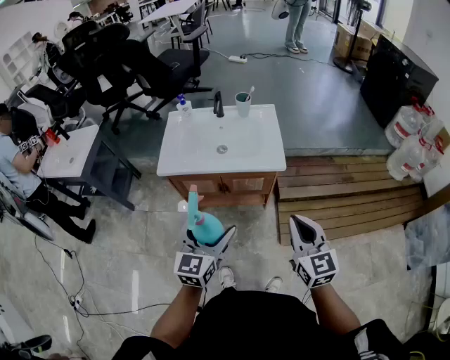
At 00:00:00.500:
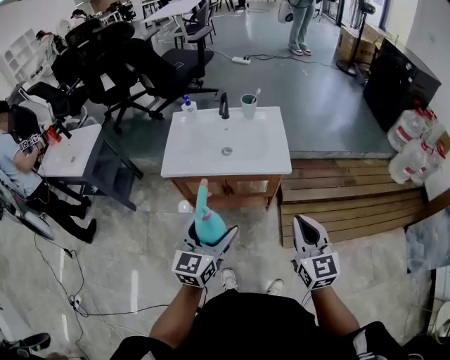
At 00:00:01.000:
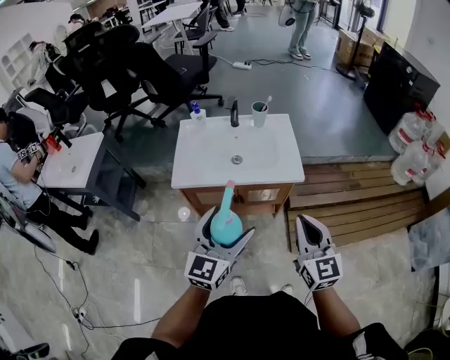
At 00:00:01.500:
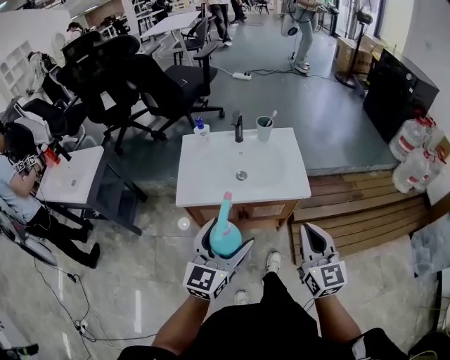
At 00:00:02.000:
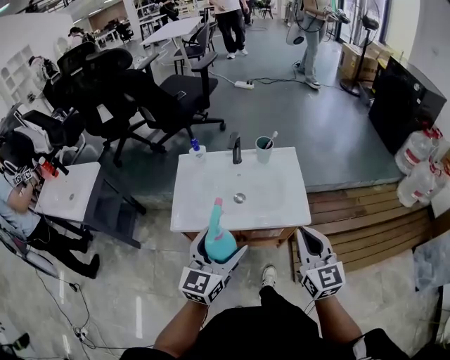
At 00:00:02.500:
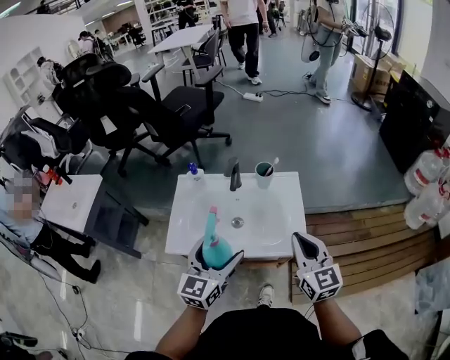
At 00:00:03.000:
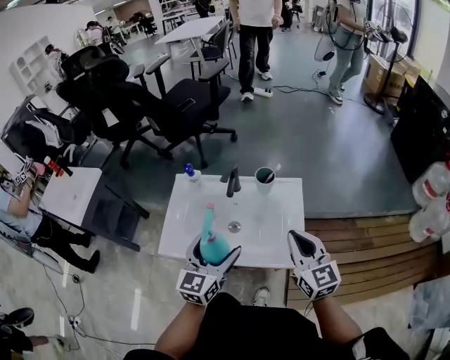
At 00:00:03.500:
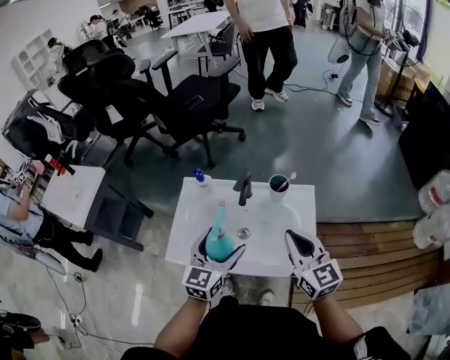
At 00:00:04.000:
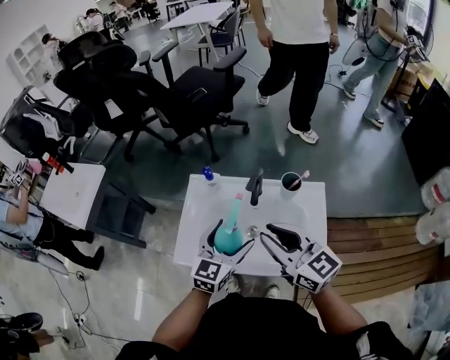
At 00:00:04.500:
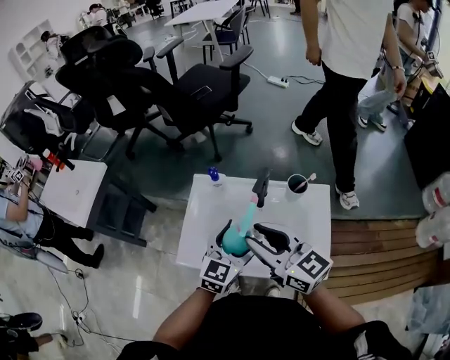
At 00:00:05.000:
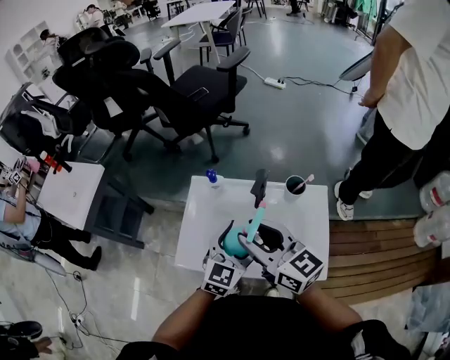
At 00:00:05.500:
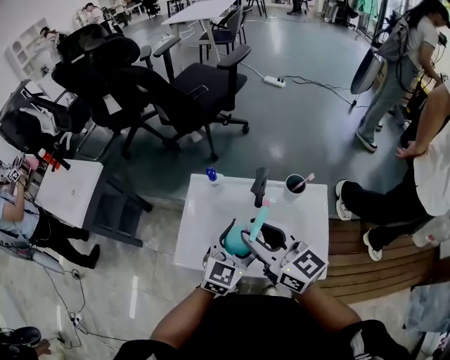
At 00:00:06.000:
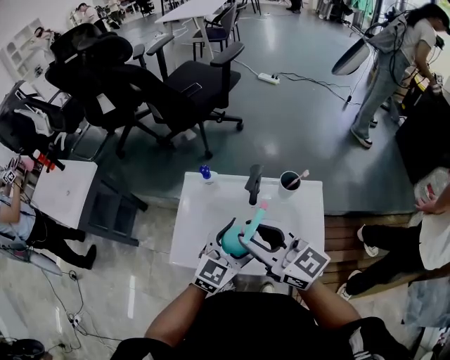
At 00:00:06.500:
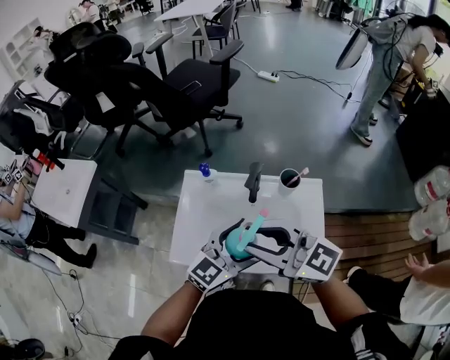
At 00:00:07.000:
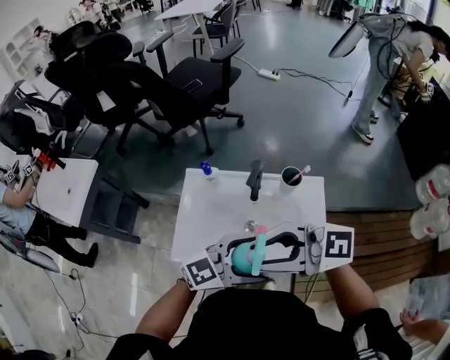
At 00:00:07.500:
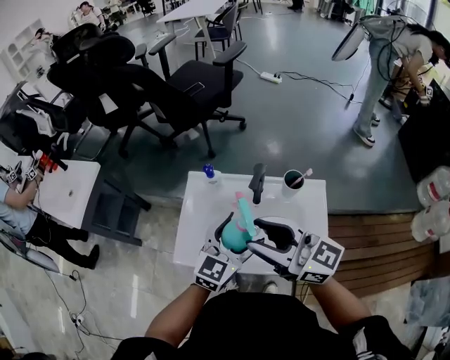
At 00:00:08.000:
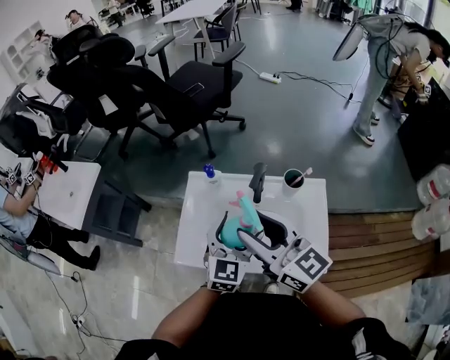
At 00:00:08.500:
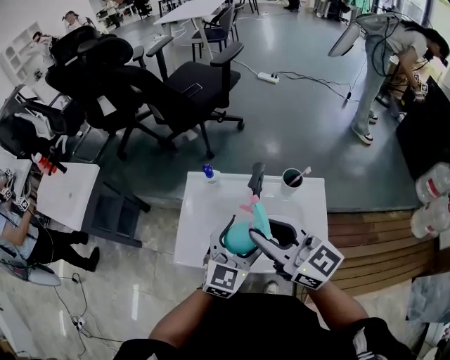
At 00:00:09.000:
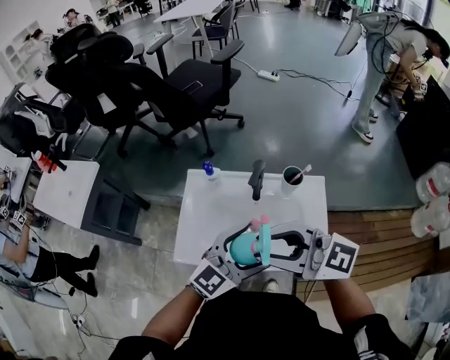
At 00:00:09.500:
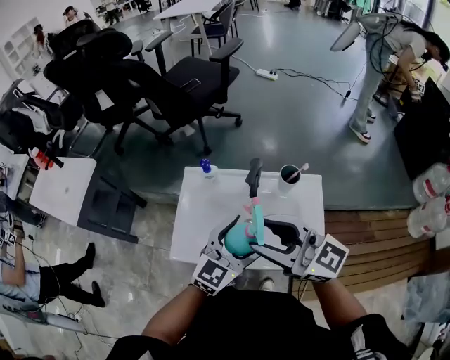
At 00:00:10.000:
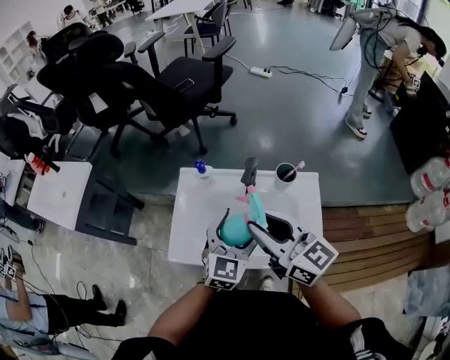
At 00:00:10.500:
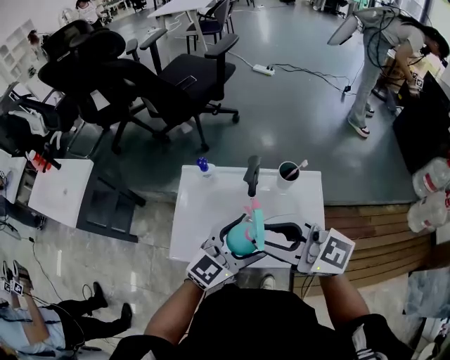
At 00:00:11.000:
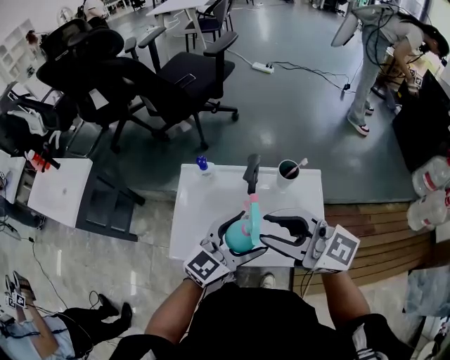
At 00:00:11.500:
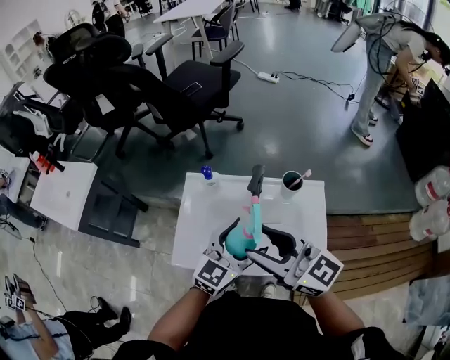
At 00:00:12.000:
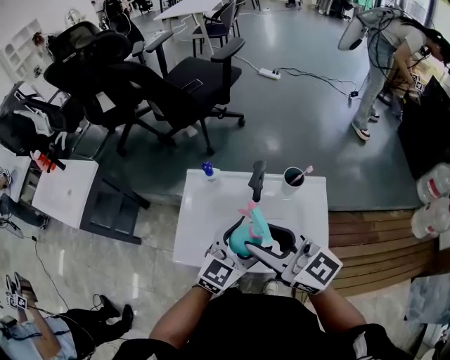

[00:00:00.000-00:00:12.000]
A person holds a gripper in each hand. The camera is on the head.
00:00:00.000 to 00:00:02.000: Both grippers travel together forward and to the left, roughly 20 cm.
00:00:02.000 to 00:00:04.000: The left gripper travels forward by some 25 cm; the right gripper heads forward and to the left, covering about 25 cm, changes its angle by roughly 40 degrees, and opens up.
00:00:04.000 to 00:00:06.000: The right gripper heads to the left, covering roughly 5 cm.

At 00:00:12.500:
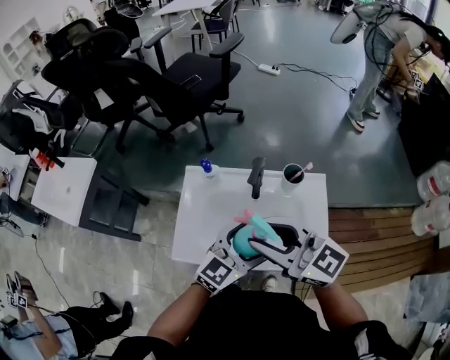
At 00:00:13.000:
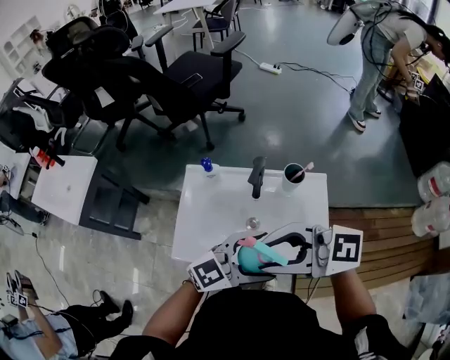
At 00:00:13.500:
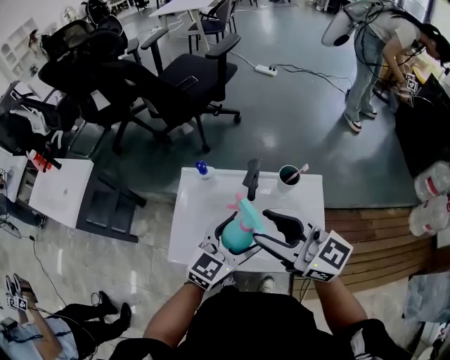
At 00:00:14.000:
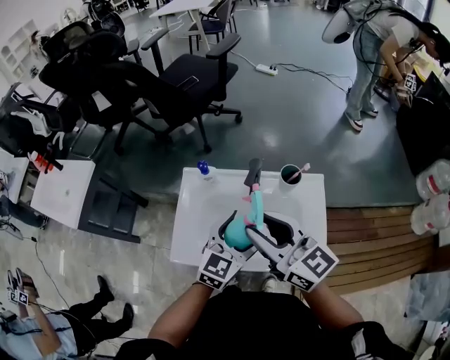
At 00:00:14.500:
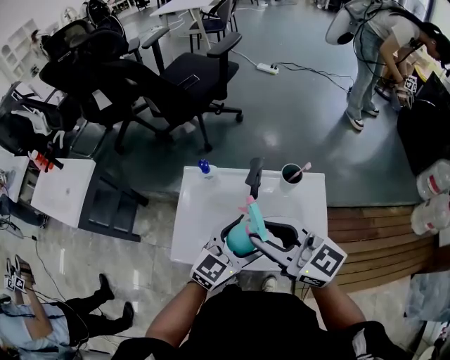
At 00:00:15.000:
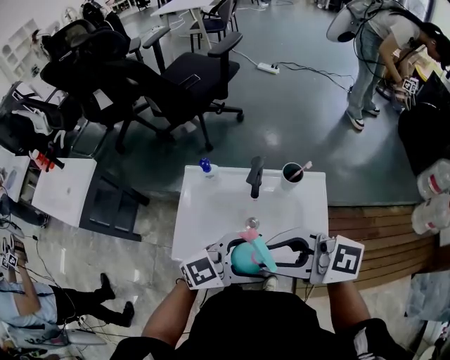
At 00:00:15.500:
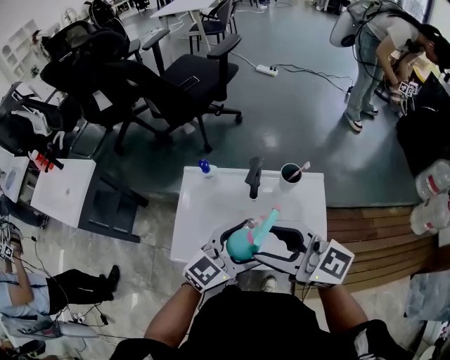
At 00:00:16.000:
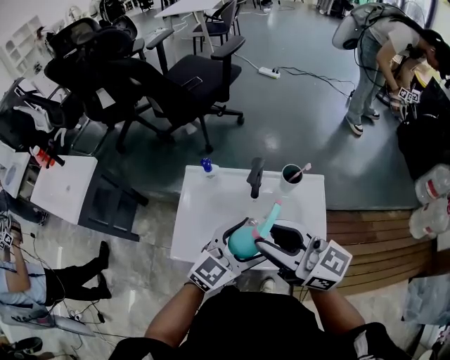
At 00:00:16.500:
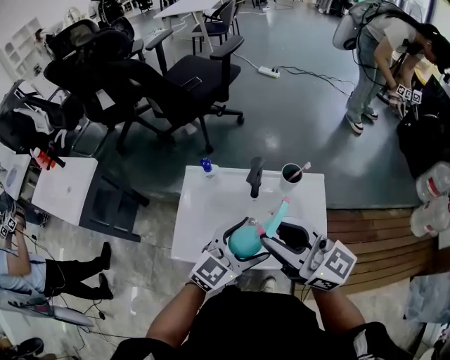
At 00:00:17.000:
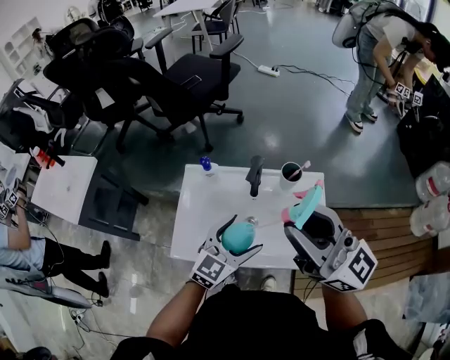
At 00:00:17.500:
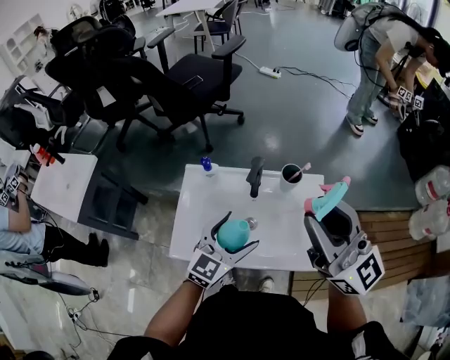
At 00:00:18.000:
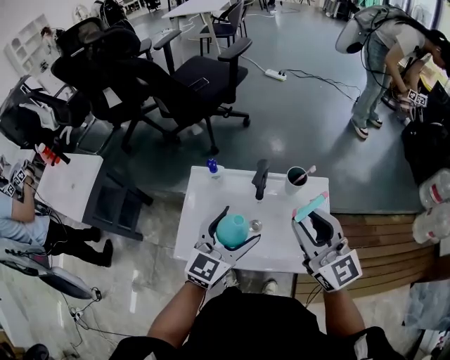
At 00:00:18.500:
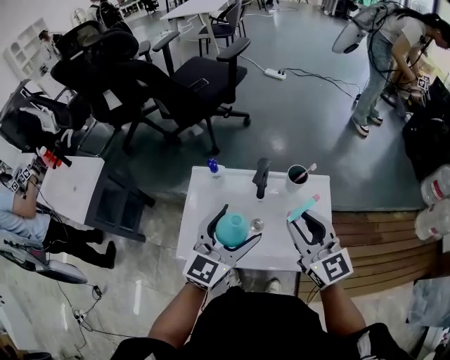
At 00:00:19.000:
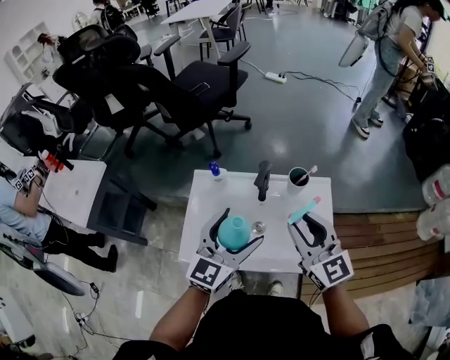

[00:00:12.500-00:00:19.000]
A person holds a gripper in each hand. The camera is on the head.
00:00:14.500 to 00:00:17.000: The right gripper moves upward, roughly 10 cm.
00:00:17.000 to 00:00:19.000: The right gripper shifts roughly 15 cm downward, and turns by about 30 degrees. Meanwhile the left gripper goes about 10 cm upward.

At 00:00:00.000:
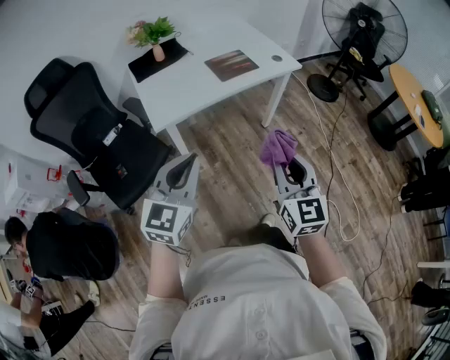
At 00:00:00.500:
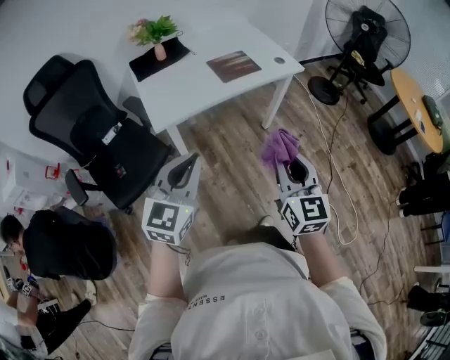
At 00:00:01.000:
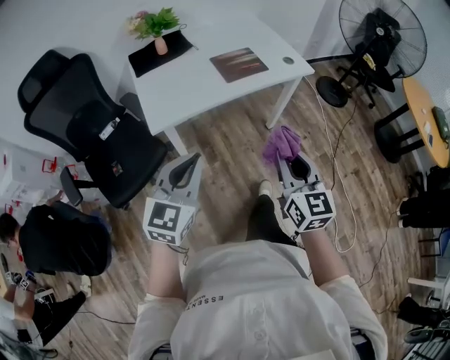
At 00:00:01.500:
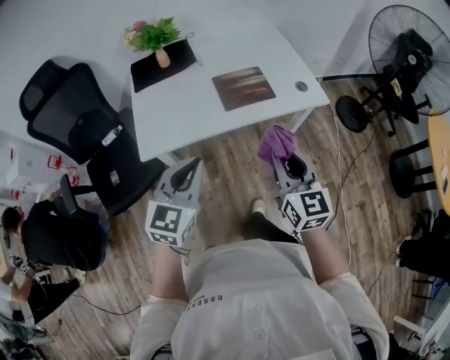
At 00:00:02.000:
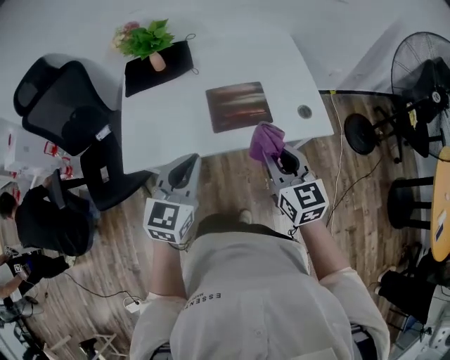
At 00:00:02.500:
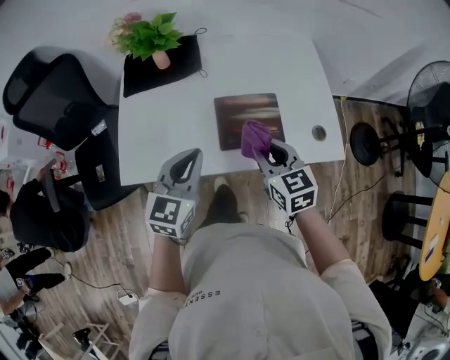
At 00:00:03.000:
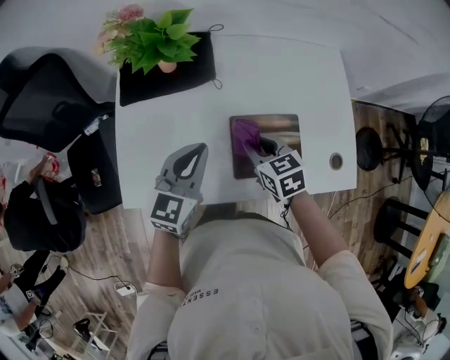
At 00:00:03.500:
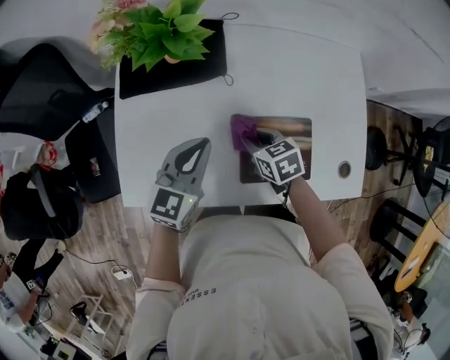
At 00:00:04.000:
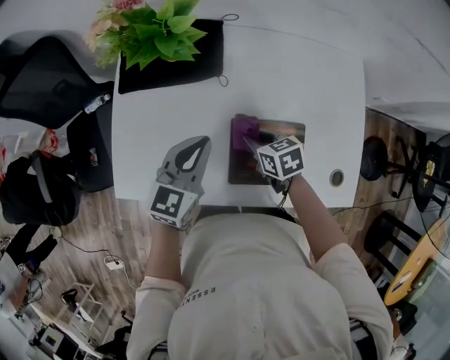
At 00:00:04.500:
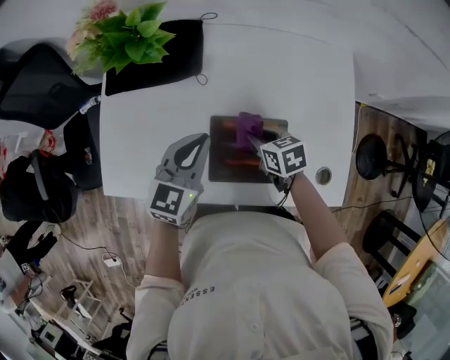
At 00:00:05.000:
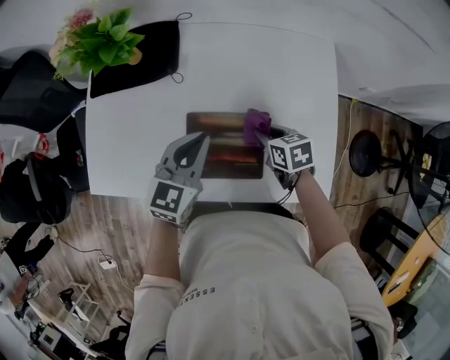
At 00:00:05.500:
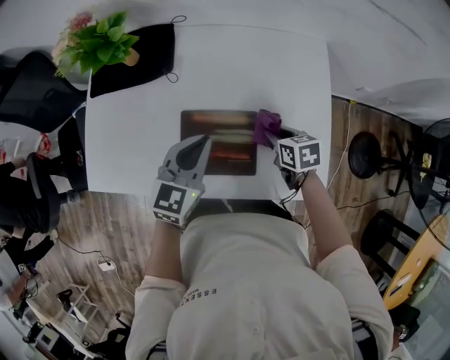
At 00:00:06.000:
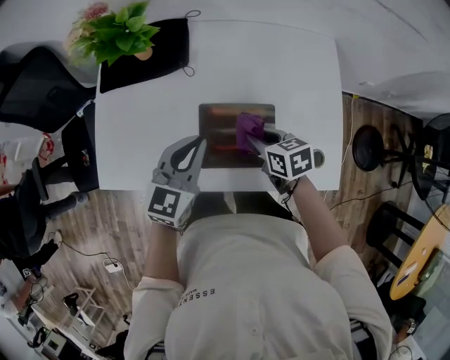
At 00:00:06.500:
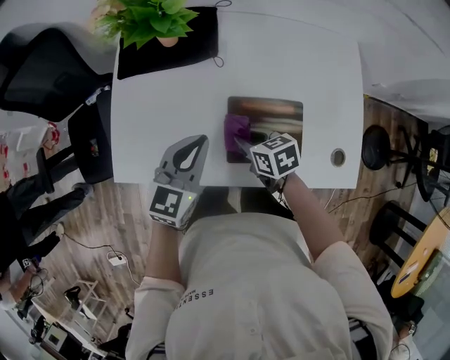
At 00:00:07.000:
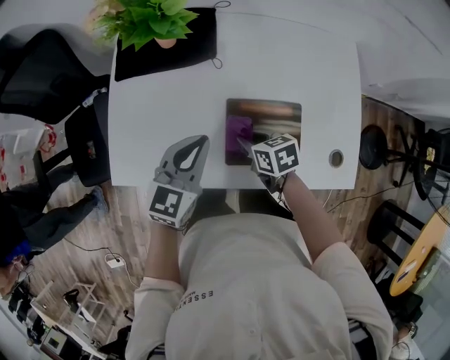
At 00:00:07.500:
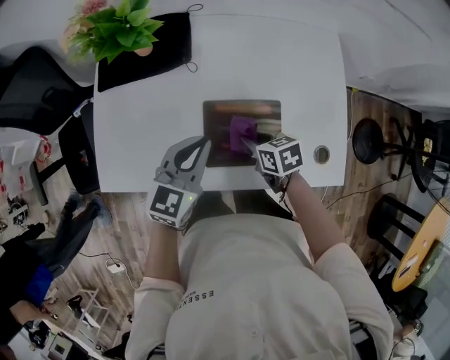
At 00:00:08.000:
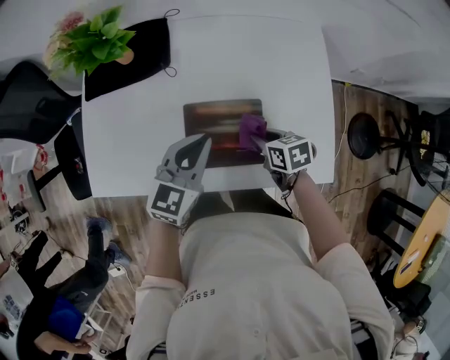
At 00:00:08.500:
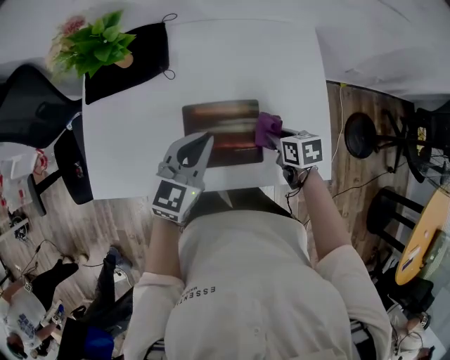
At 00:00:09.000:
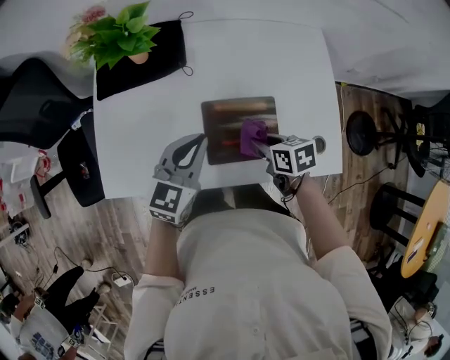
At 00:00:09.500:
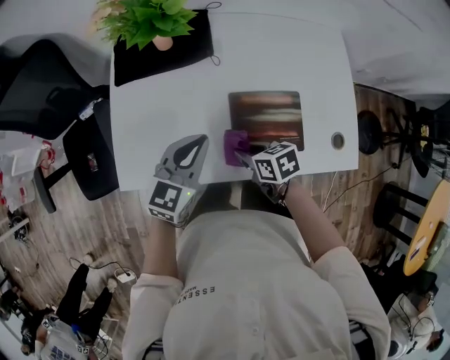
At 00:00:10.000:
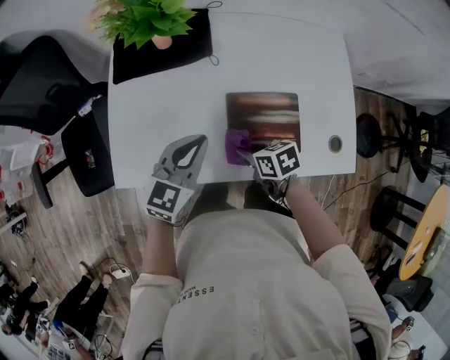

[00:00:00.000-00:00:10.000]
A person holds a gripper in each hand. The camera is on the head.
00:00:00.000 to 00:00:02.000: The left gripper ends up approximately 40 cm from where it was, and rotates approximately 20 degrees. The right gripper shifts by approximately 50 cm, and swivels roughly 30 degrees.
00:00:02.000 to 00:00:04.000: The right gripper shifts about 40 cm forward and downward, and points its fingers roughly 30 degrees further downward. Meanwhile the left gripper goes roughly 30 cm forward.
00:00:04.000 to 00:00:06.000: The two grippers go approximately 10 cm to the right and backward.
00:00:06.000 to 00:00:08.000: The right gripper travels to the left and back again, roughly 10 cm each way. The left gripper moves to the right, approximately 5 cm.
00:00:08.000 to 00:00:10.000: The two grippers go some 15 cm to the left.
